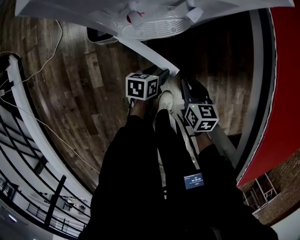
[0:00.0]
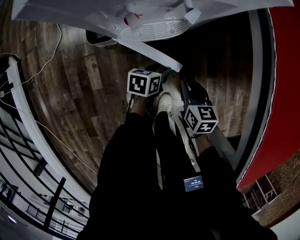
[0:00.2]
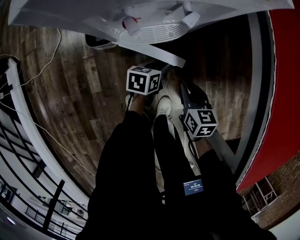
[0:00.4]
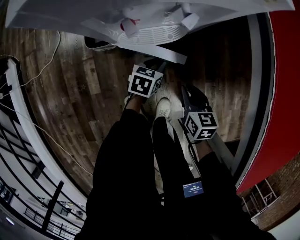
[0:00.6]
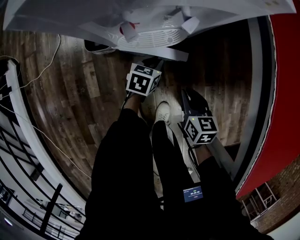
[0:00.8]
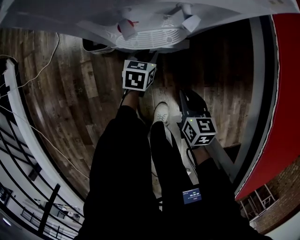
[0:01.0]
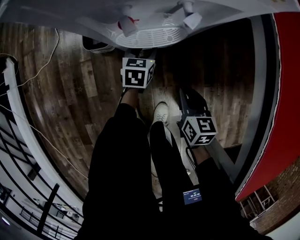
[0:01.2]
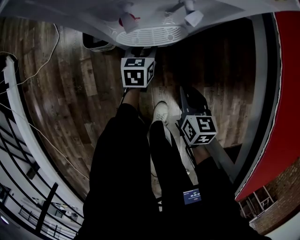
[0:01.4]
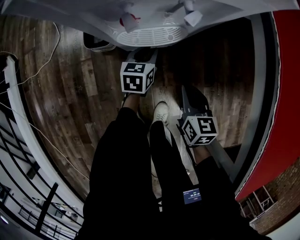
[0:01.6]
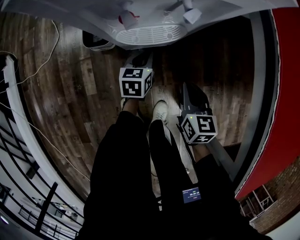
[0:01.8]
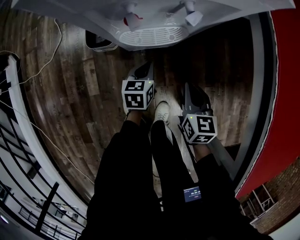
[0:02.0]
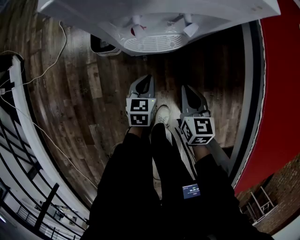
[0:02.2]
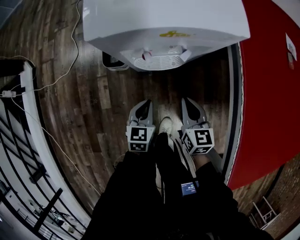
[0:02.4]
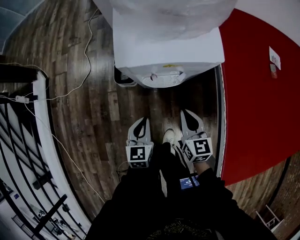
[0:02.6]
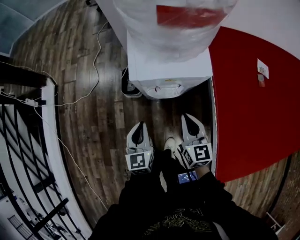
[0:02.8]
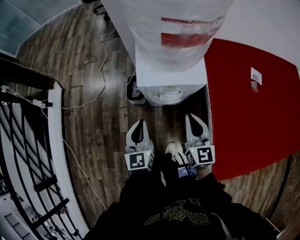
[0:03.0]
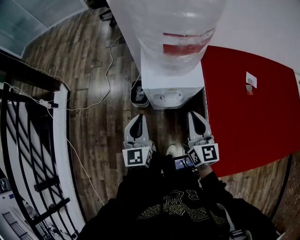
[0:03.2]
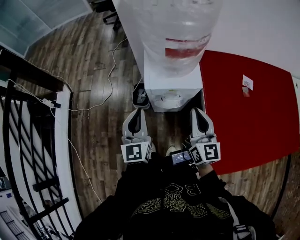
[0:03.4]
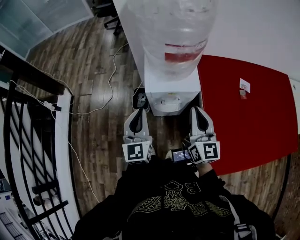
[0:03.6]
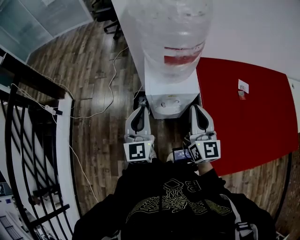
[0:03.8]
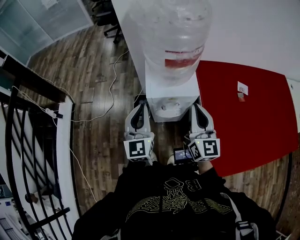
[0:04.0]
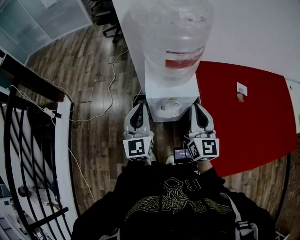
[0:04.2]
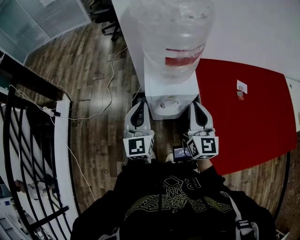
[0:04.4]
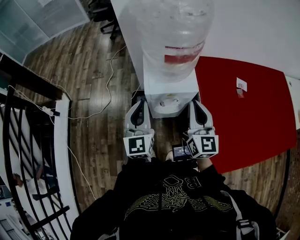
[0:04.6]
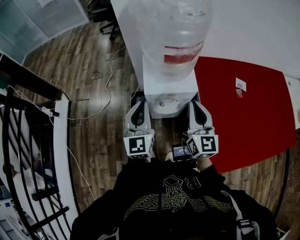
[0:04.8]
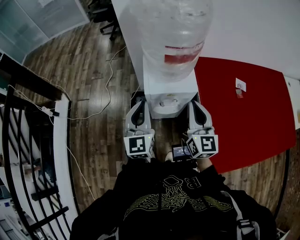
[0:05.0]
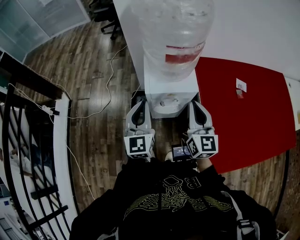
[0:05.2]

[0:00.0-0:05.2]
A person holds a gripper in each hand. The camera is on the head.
0:00.0 to 0:01.8: The left gripper goes roughly 10 cm forward, rotates approximately 30 degrees, and closes its fingers.
0:01.8 to 0:03.4: Both grippers move upward, approximately 60 cm. The left gripper tilts its fingers about 40 degrees upward. The right gripper tips its fingers upward by about 30 degrees.
0:03.4 to 0:05.2: The left gripper ends up about 5 cm from where it was.

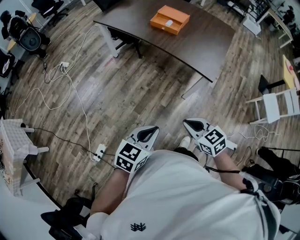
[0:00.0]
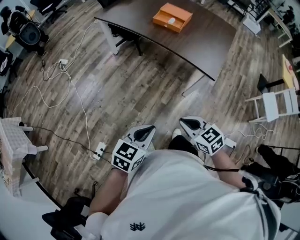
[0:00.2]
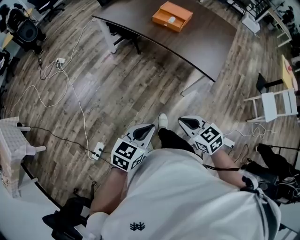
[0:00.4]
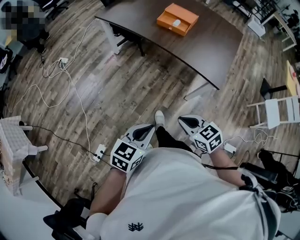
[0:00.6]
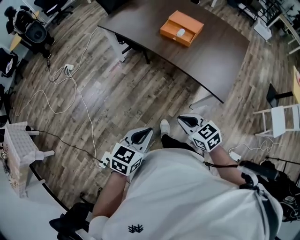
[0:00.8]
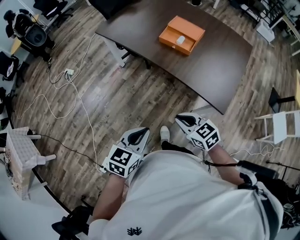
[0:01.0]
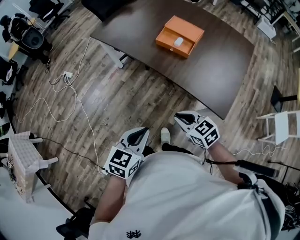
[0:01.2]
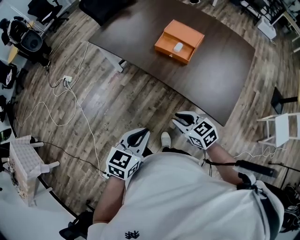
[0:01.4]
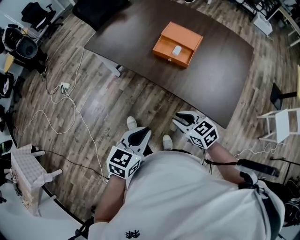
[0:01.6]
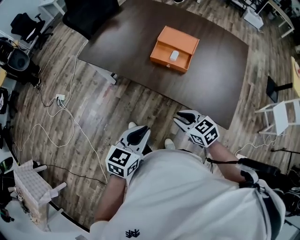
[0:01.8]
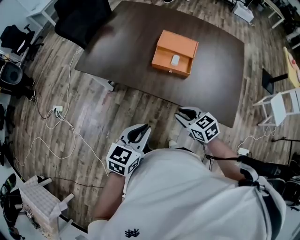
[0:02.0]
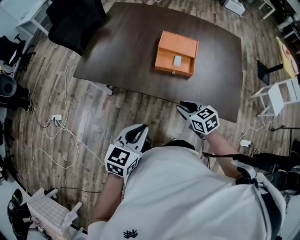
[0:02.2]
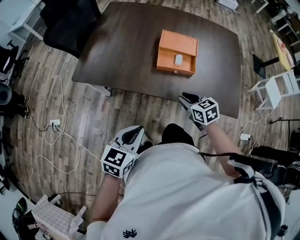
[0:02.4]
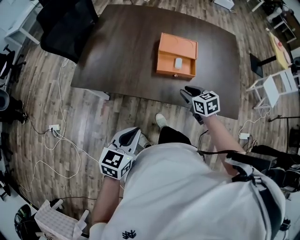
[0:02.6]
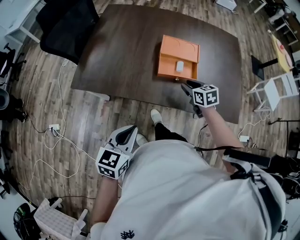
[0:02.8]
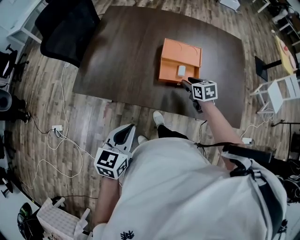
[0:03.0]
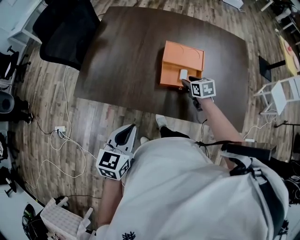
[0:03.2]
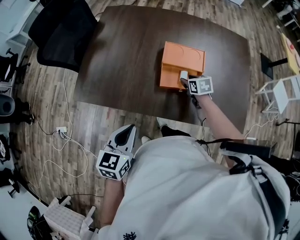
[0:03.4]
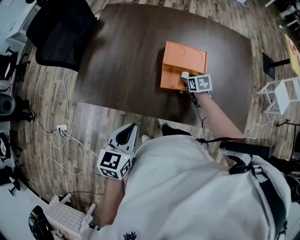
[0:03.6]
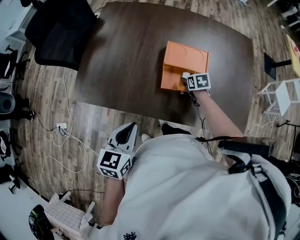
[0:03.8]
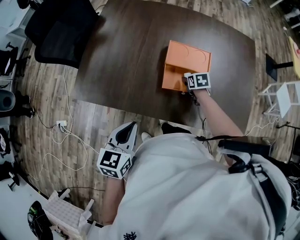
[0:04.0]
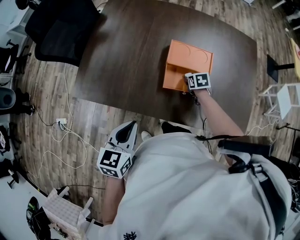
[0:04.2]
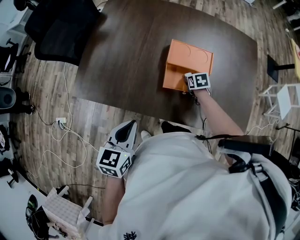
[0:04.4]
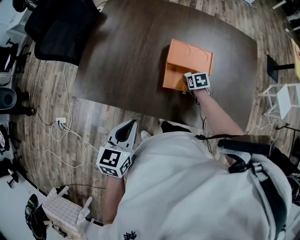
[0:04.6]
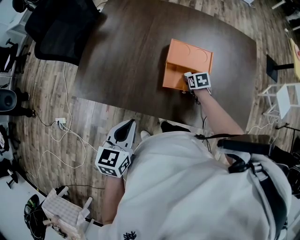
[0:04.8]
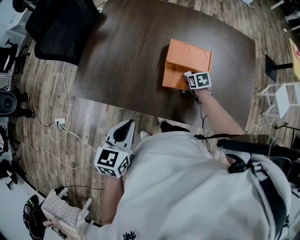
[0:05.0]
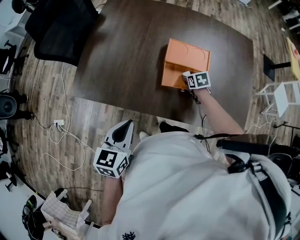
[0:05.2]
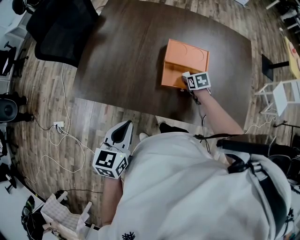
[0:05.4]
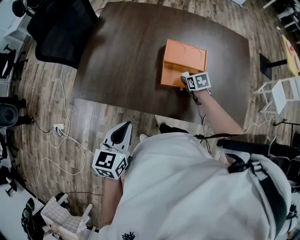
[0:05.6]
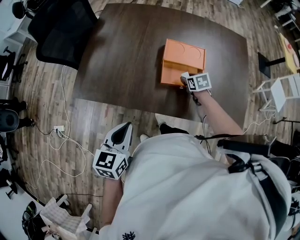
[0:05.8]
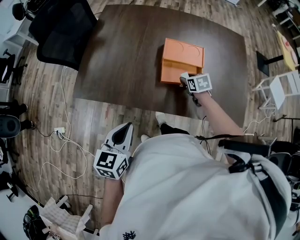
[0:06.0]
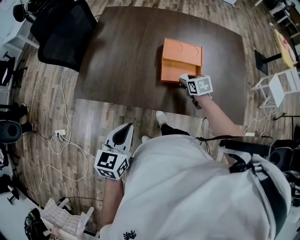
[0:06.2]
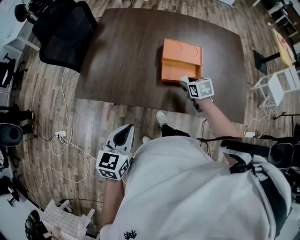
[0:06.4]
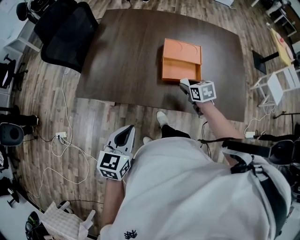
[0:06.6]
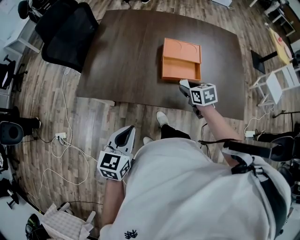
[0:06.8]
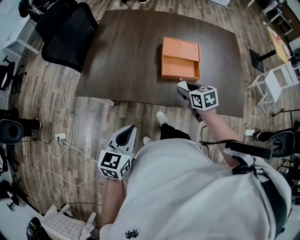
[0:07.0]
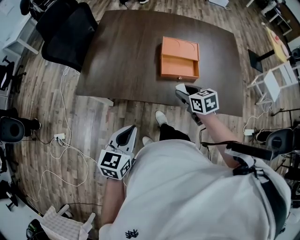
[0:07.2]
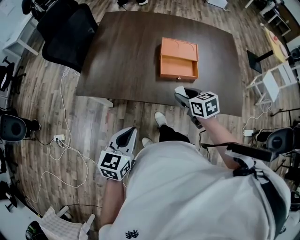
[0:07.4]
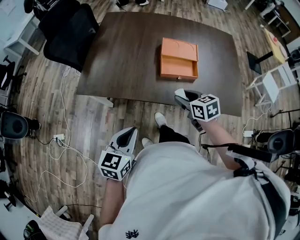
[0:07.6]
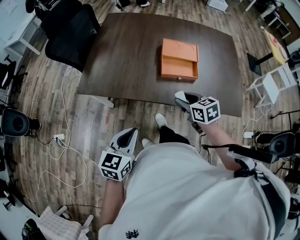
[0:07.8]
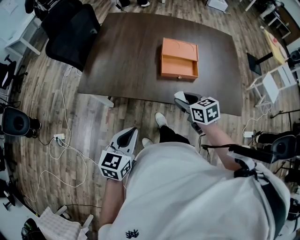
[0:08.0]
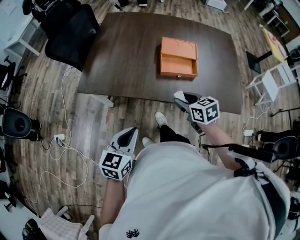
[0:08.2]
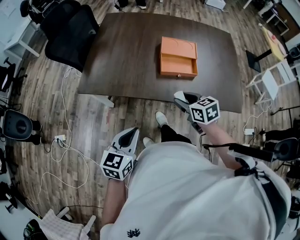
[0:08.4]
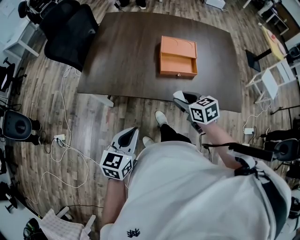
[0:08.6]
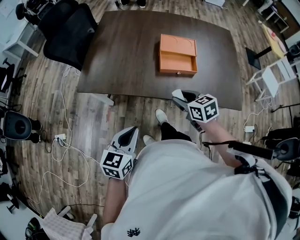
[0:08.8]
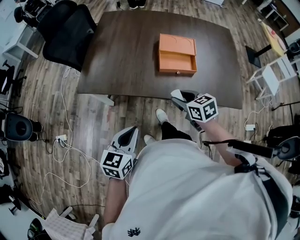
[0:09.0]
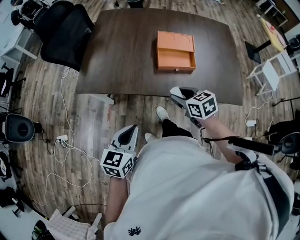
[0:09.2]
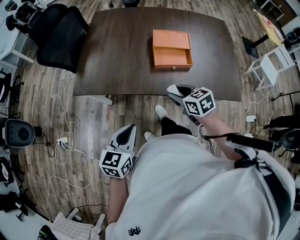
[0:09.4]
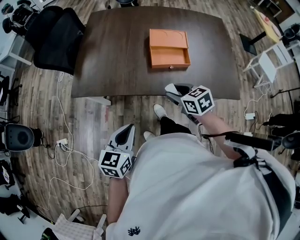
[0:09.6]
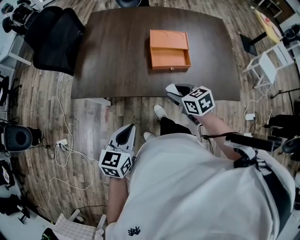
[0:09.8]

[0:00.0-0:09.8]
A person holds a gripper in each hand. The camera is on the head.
0:00.0 to 0:01.4: The two grippers go about 40 cm forward.
0:01.4 to 0:02.8: The right gripper shifts by approximately 40 cm, and turns by about 50 degrees; the left gripper shifts by roughly 40 cm.
0:02.8 to 0:04.2: The right gripper heads forward and downward, covering roughly 25 cm, and rotates about 20 degrees, while the left gripper travels forward by some 15 cm.
0:04.2 to 0:05.6: The left gripper moves roughly 5 cm; the right gripper ends up about 5 cm from where it was.
0:05.6 to 0:07.0: The right gripper moves backward, upward and to the left, about 25 cm, while the left gripper travels backward by about 10 cm.
0:07.0 to 0:08.4: The right gripper travels backward by some 10 cm. The left gripper heads backward, covering roughly 5 cm.
0:08.4 to 0:09.8: The grippers stay close to where they were, moving slightly.

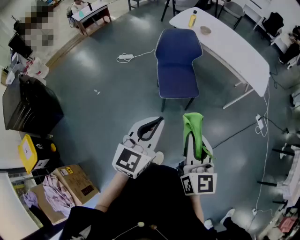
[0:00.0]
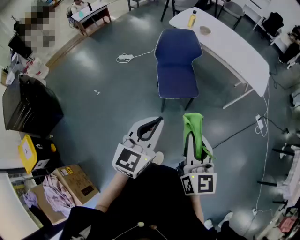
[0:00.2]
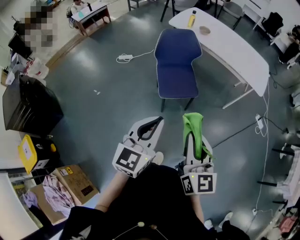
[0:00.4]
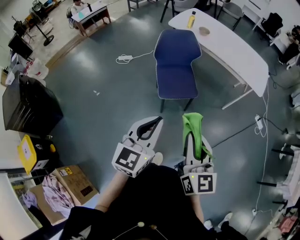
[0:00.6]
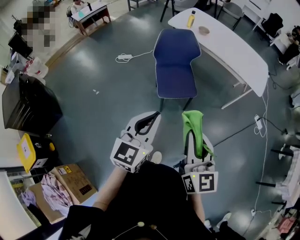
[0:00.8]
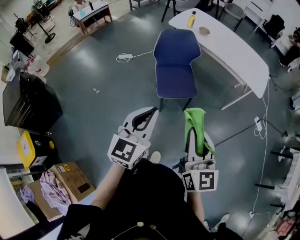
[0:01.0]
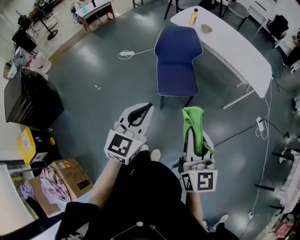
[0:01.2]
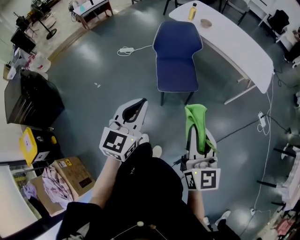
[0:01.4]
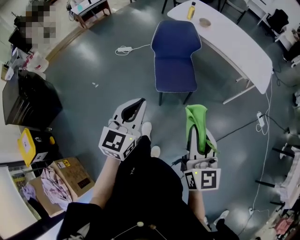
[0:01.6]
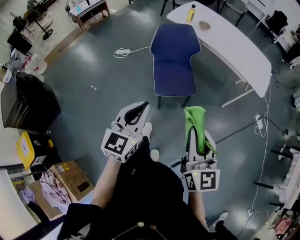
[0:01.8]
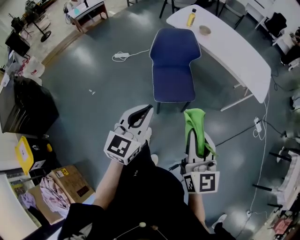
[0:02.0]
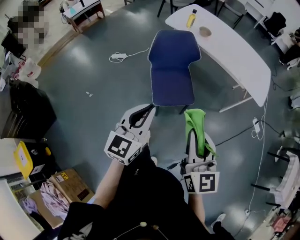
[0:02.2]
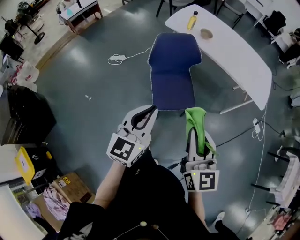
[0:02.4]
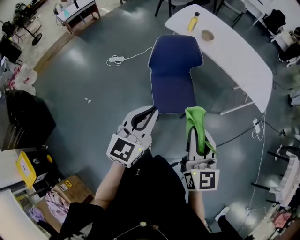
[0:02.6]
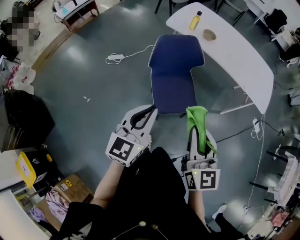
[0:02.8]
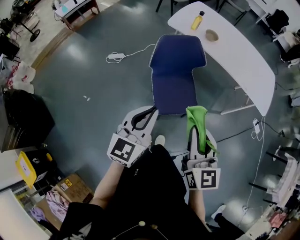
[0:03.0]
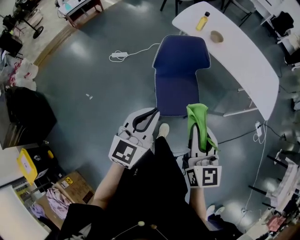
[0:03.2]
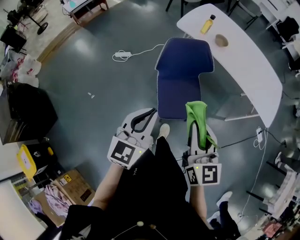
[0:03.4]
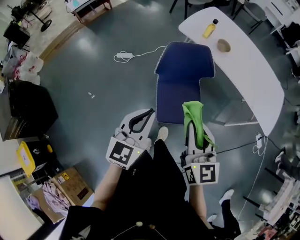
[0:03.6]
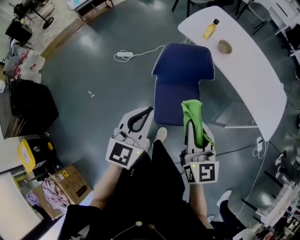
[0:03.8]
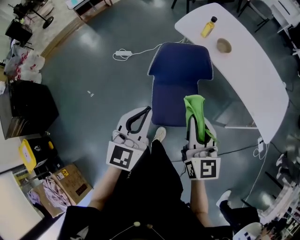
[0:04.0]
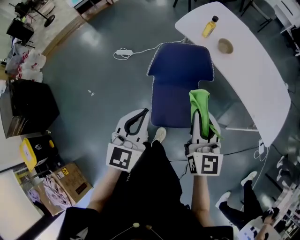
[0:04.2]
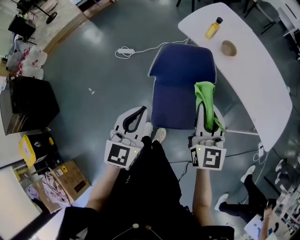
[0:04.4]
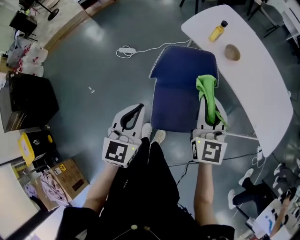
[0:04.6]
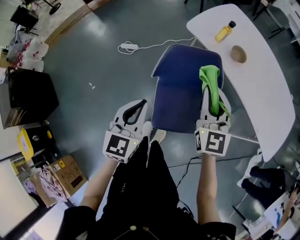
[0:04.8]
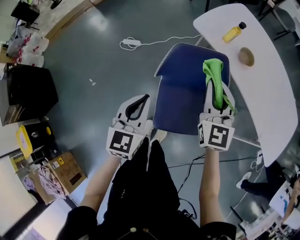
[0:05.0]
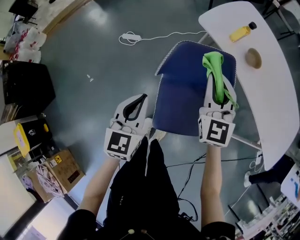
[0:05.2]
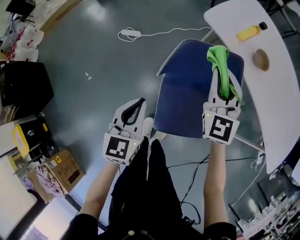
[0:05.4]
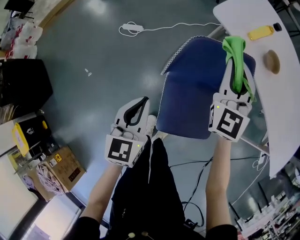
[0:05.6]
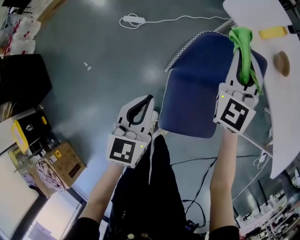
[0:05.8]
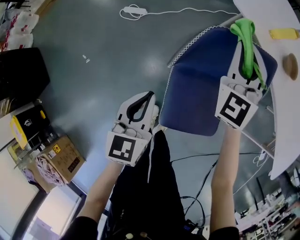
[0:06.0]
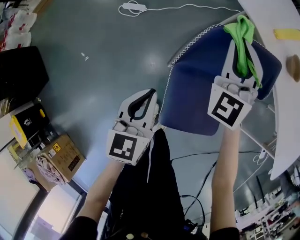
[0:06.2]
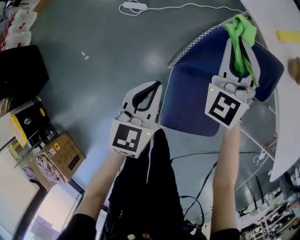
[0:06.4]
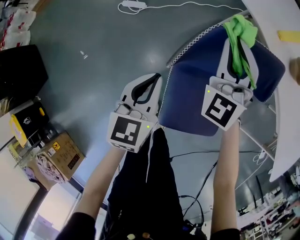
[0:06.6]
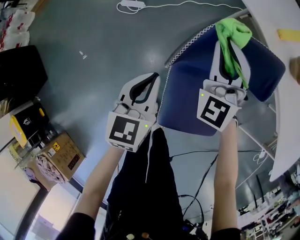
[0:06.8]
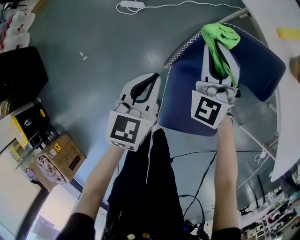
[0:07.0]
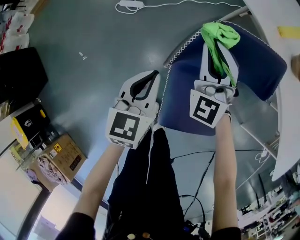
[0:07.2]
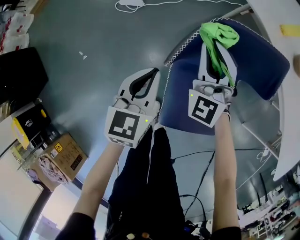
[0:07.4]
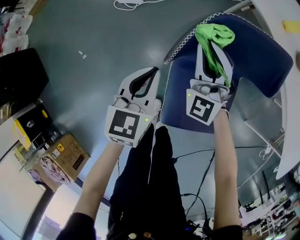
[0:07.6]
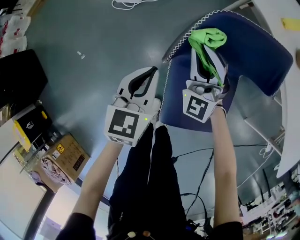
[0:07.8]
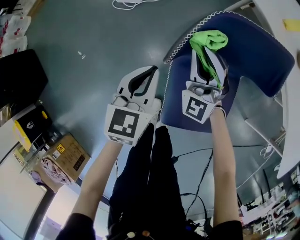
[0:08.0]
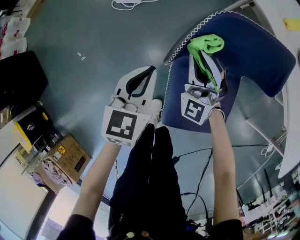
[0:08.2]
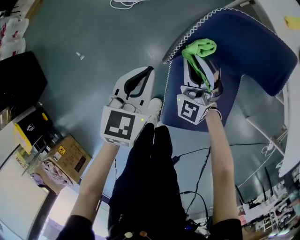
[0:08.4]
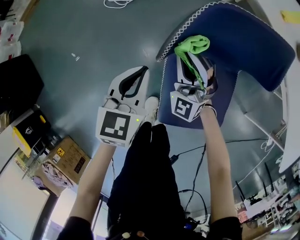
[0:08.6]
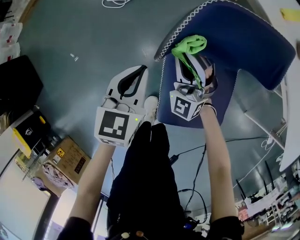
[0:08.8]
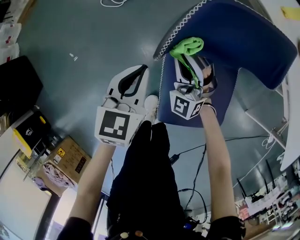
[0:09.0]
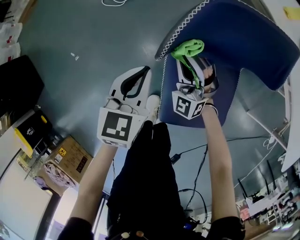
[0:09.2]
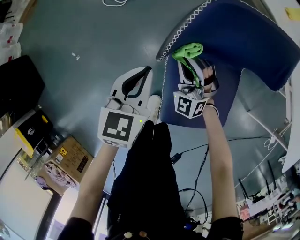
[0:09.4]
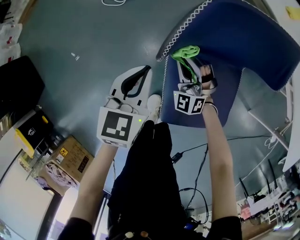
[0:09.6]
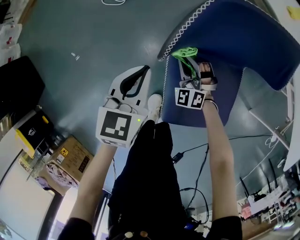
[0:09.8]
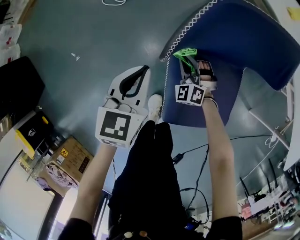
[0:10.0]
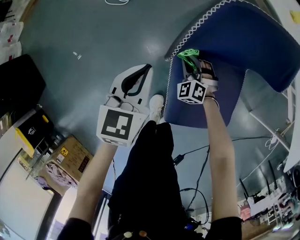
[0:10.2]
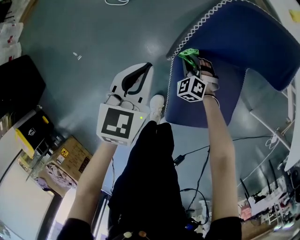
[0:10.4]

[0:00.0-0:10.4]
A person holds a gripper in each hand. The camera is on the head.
0:00.0 to 0:01.4: The grippers move only a little.
0:01.4 to 0:03.0: The grippers both shift forward by some 25 cm.
0:03.0 to 0:04.4: The left gripper moves forward, about 15 cm, and turns by roughly 20 degrees, while the right gripper is displaced forward by about 25 cm.
0:04.4 to 0:06.0: The left gripper is displaced downward and forward by approximately 25 cm. Meanwhile the right gripper moves forward and downward, roughly 30 cm, and turns by about 30 degrees.
0:06.0 to 0:07.4: The right gripper travels downward and to the left by about 10 cm, while the left gripper goes roughly 10 cm forward and downward.
0:07.4 to 0:09.0: The right gripper heads downward and backward, covering roughly 15 cm.
0:09.0 to 0:10.4: The right gripper is displaced downward by about 20 cm, and points its fingers about 40 degrees further downward.
